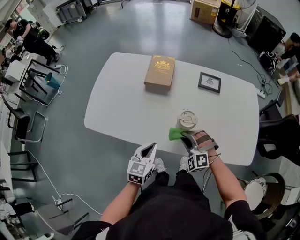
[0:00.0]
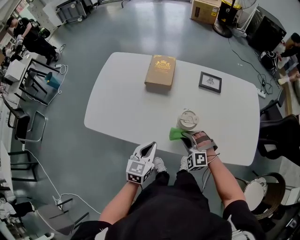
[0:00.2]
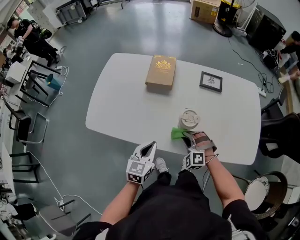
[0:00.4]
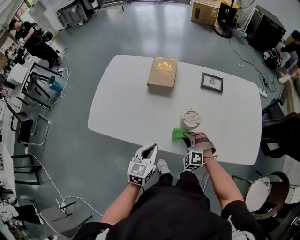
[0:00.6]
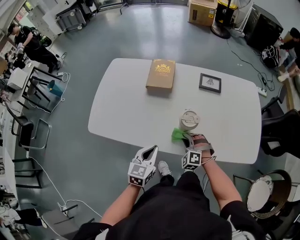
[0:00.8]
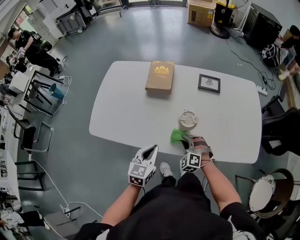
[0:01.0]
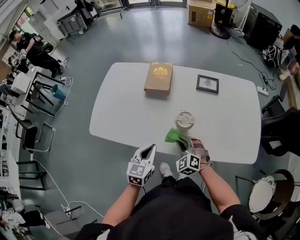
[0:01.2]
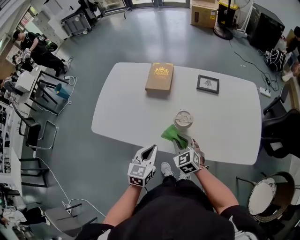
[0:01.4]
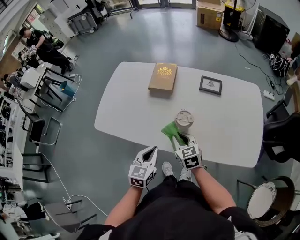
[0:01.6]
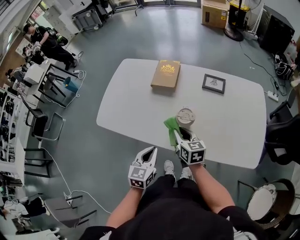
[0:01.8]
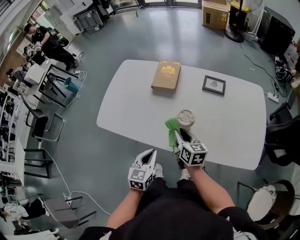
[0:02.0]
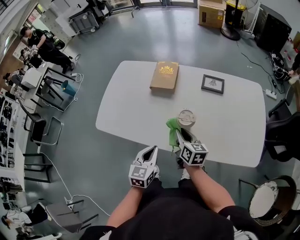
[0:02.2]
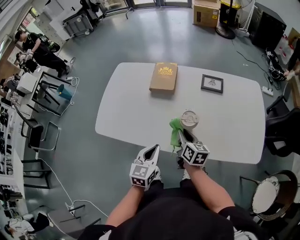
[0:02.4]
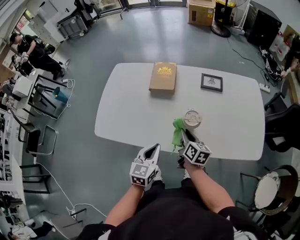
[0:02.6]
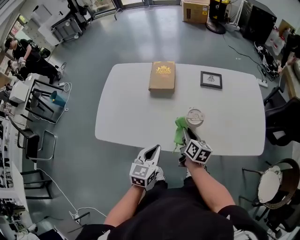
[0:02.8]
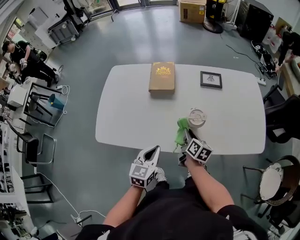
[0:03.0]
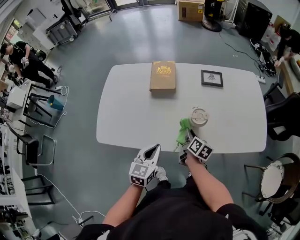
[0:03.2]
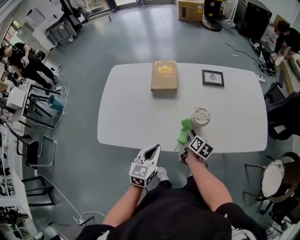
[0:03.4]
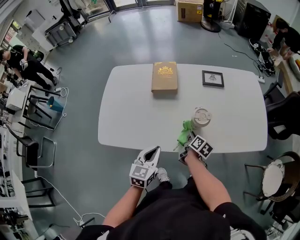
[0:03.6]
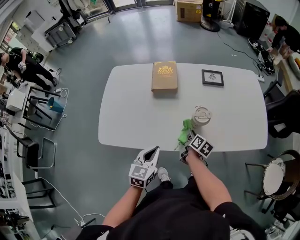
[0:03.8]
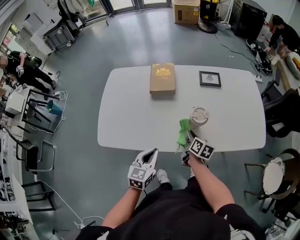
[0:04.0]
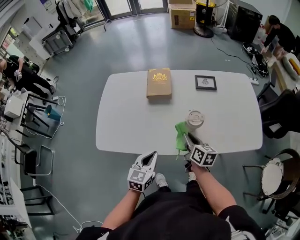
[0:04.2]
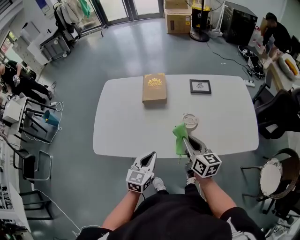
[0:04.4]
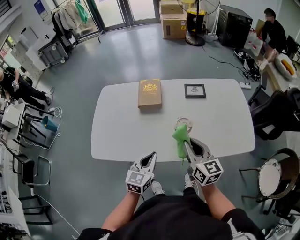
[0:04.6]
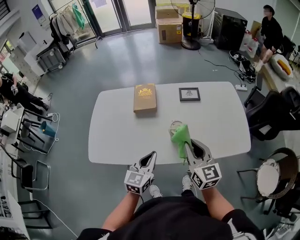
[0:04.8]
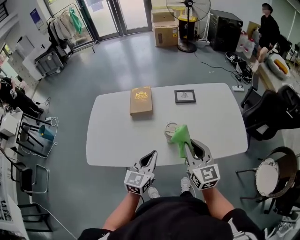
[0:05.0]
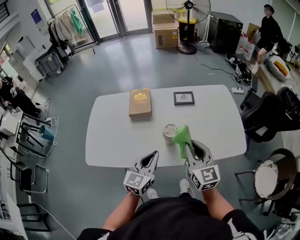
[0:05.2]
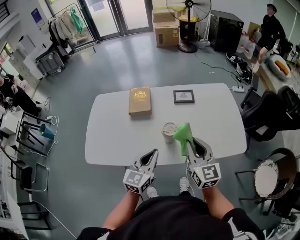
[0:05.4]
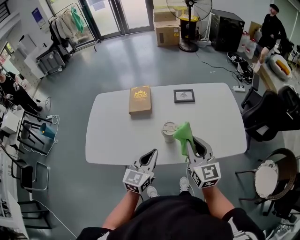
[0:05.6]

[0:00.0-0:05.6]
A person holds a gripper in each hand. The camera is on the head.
0:00.0 to 0:01.4: The right gripper travels downward and back again, roughly 5 cm each way, and rotates around the line of its fingers by some 50 degrees, clockwise from behind.
0:01.4 to 0:02.8: The right gripper twists approximately 60 degrees clockwise, seen from behind.
0:02.8 to 0:04.2: The right gripper reaches about 10 cm downward, then returns.
0:04.2 to 0:05.6: The right gripper moves upward and to the right, approximately 20 cm, and rotates approximately 40 degrees; the left gripper travels to the right and upward by some 15 cm.

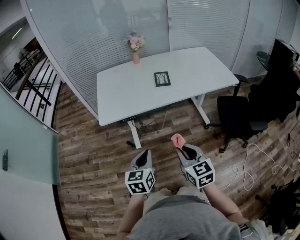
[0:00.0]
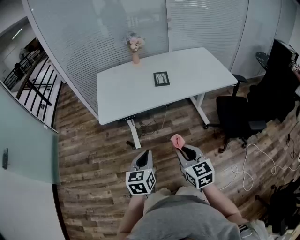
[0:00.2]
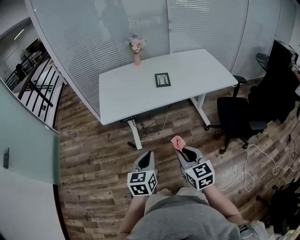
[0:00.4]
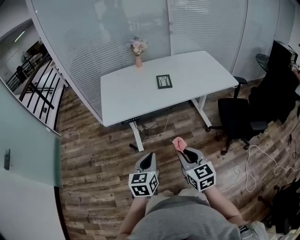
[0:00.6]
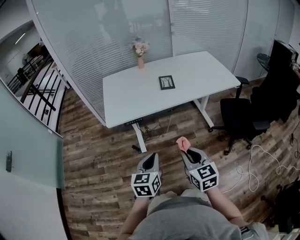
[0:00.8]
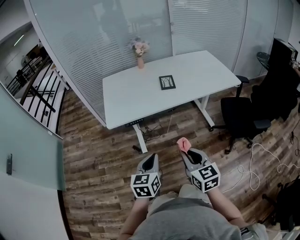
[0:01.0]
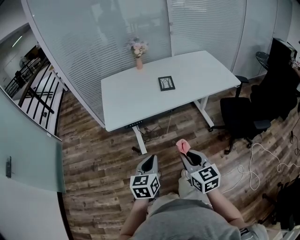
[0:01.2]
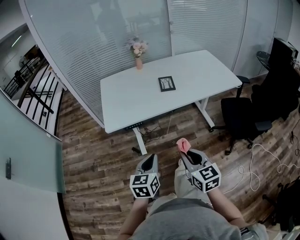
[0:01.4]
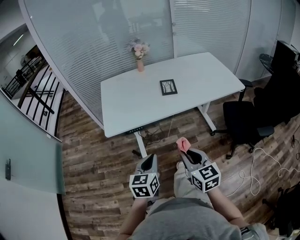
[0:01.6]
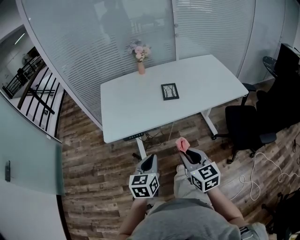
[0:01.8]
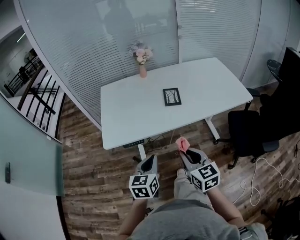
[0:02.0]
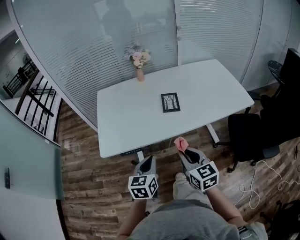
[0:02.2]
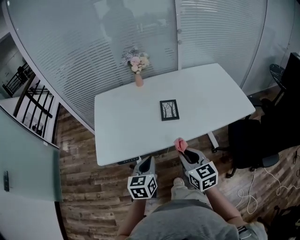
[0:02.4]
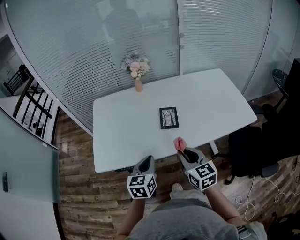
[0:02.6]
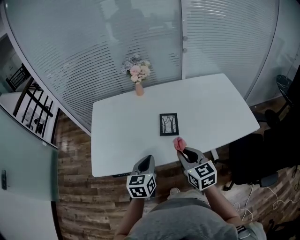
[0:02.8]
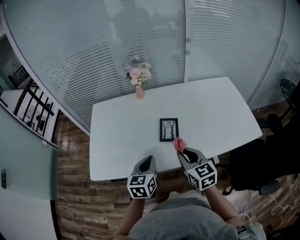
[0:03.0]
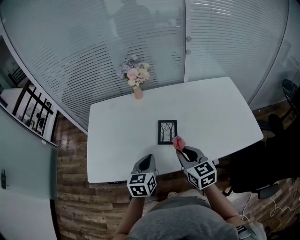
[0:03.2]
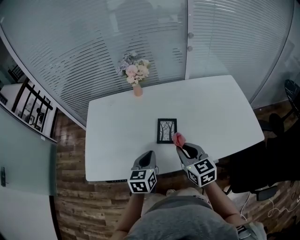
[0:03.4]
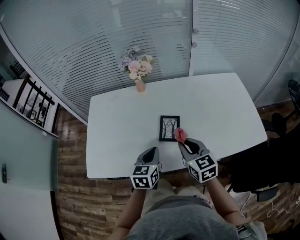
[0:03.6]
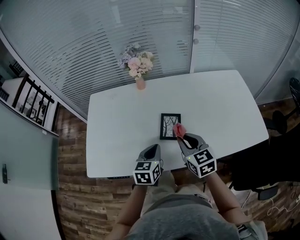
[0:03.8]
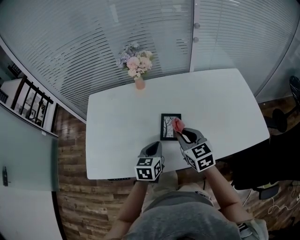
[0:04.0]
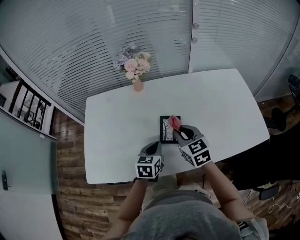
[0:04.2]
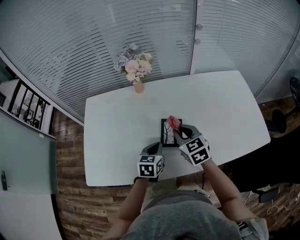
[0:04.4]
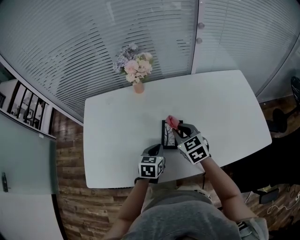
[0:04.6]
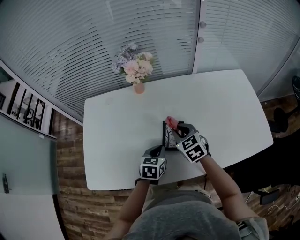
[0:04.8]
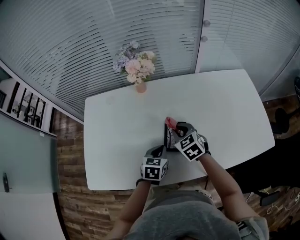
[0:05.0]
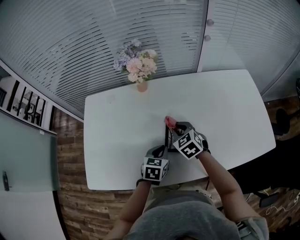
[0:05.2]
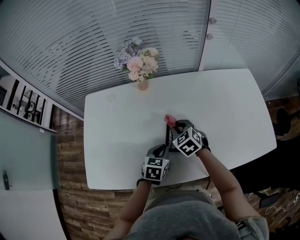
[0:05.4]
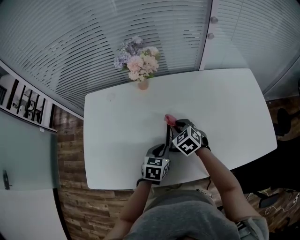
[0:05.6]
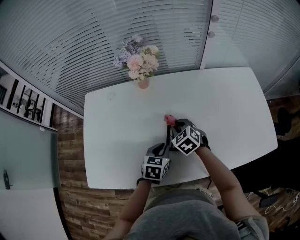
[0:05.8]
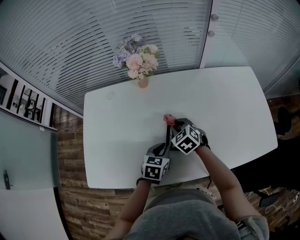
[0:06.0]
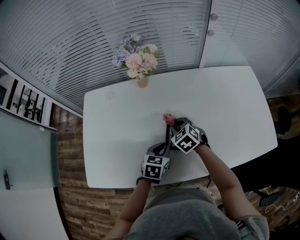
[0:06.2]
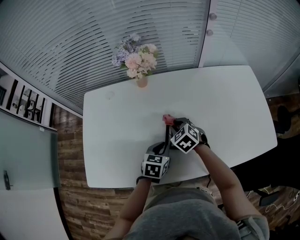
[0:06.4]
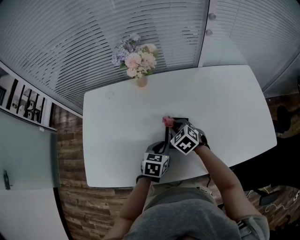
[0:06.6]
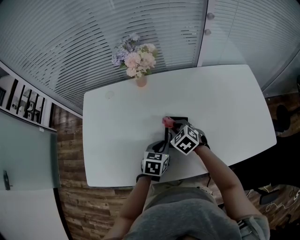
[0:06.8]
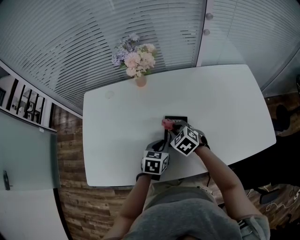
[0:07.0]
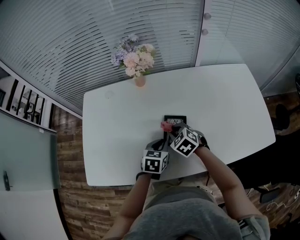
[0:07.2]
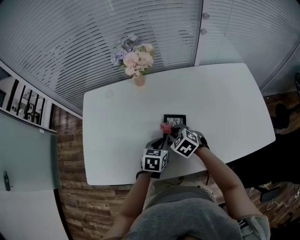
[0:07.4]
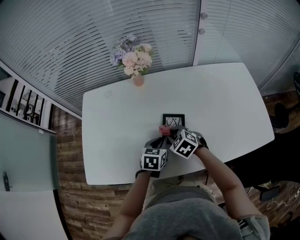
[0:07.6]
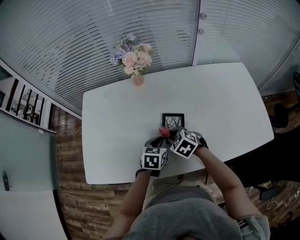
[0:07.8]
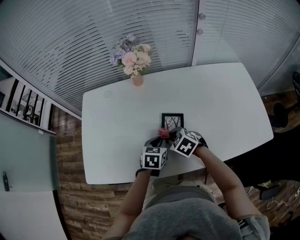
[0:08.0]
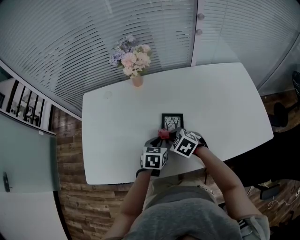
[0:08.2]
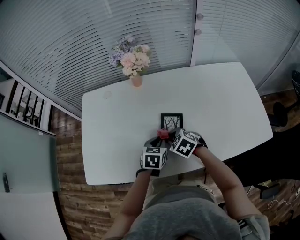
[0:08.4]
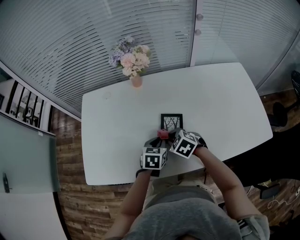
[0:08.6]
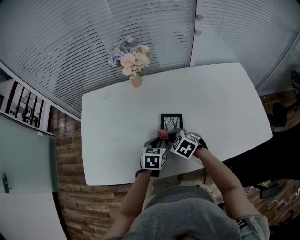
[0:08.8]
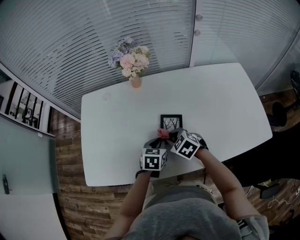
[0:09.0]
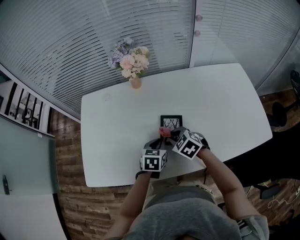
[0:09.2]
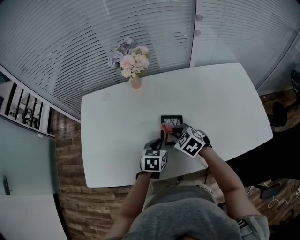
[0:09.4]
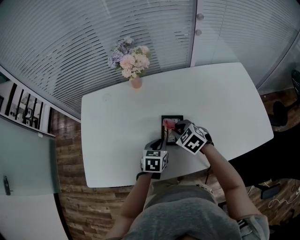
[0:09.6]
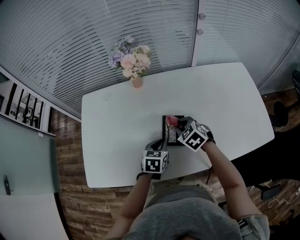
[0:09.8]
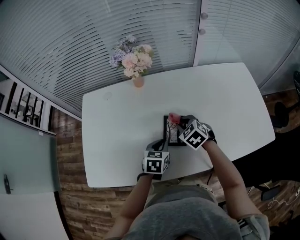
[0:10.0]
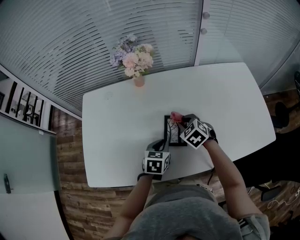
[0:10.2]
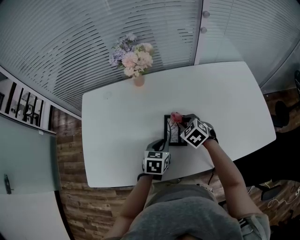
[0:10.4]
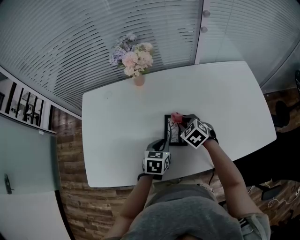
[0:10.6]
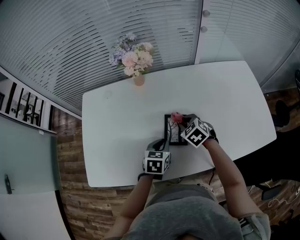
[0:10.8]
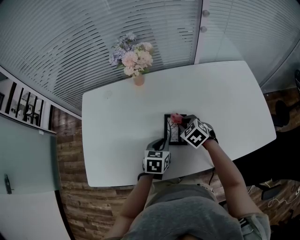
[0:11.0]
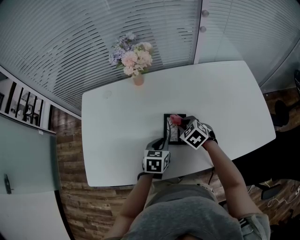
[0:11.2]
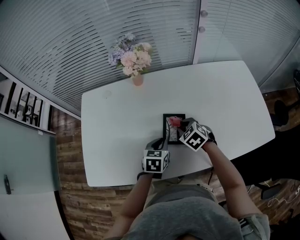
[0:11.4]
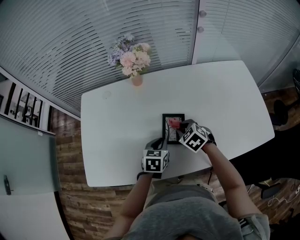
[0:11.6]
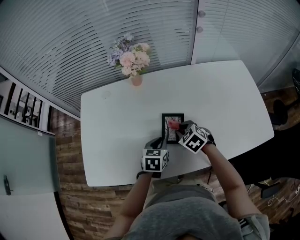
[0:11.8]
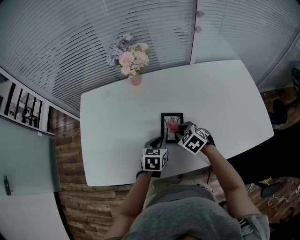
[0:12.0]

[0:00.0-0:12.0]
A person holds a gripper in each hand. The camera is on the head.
0:00.0 to 0:01.6: There are only small adjustments of the grippers.
0:01.6 to 0:03.0: Both grippers move forward, about 35 cm.
0:03.0 to 0:04.4: The left gripper goes about 15 cm forward and downward; the right gripper heads forward, covering about 15 cm.
0:04.4 to 0:06.0: The right gripper heads downward and forward, covering roughly 15 cm, and turns by about 20 degrees.
0:06.0 to 0:07.6: The right gripper moves backward, some 10 cm.
0:07.6 to 0:09.0: There are only small adjustments of the grippers.
0:09.0 to 0:10.4: The right gripper shifts roughly 10 cm forward and to the right.
0:10.4 to 0:12.0: The right gripper travels backward by approximately 5 cm.

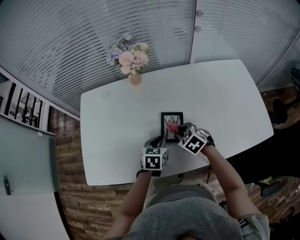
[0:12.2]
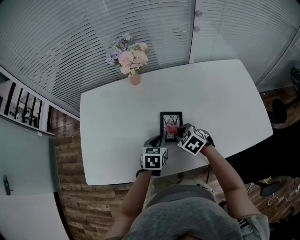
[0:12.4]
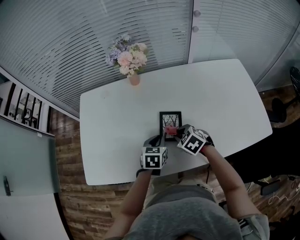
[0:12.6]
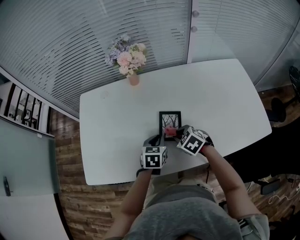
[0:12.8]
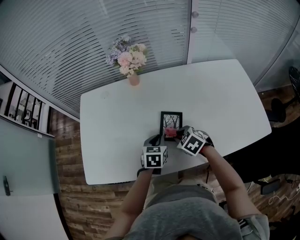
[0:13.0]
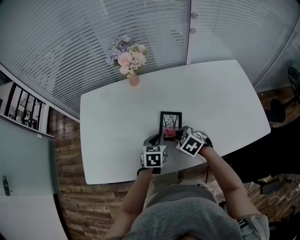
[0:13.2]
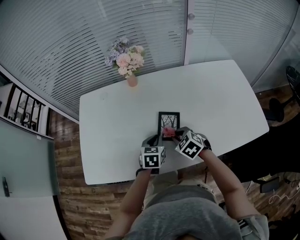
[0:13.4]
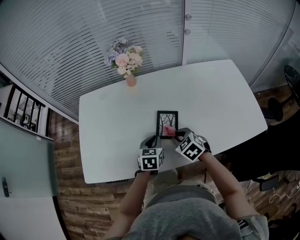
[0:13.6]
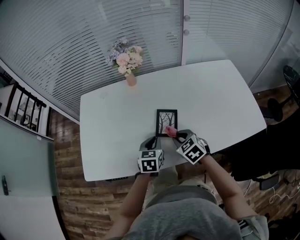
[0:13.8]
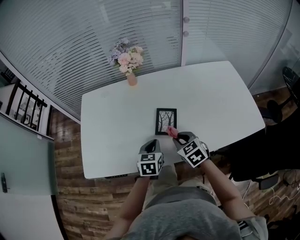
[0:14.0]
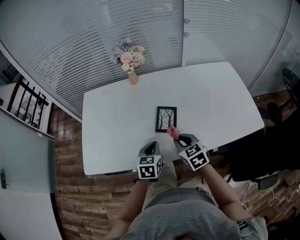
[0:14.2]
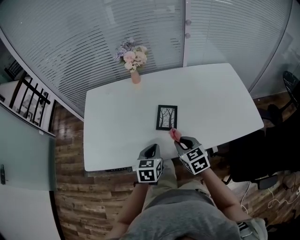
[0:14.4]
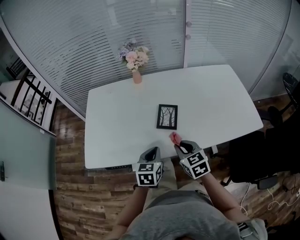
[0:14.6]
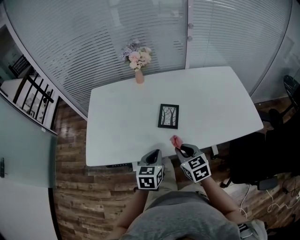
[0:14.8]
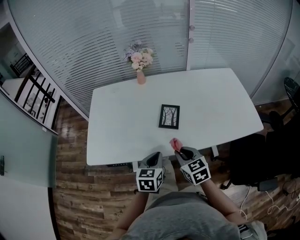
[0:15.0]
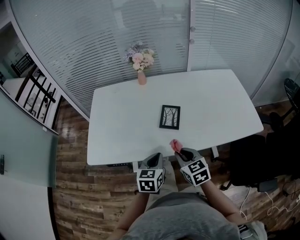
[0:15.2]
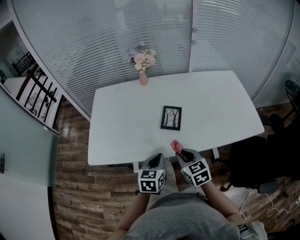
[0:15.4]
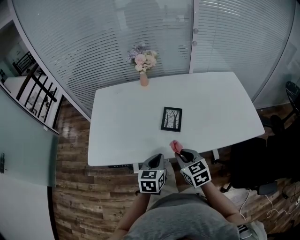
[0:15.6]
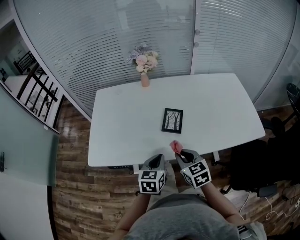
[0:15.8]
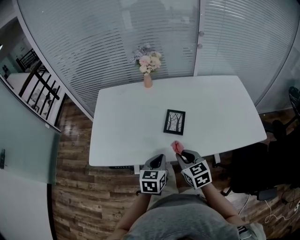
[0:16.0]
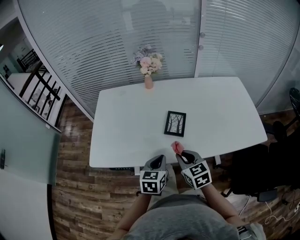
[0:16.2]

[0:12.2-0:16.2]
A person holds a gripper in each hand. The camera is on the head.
0:12.2 to 0:13.6: The right gripper shifts by some 5 cm.
0:13.6 to 0:14.8: The right gripper travels backward and upward by roughly 15 cm, and rotates approximately 20 degrees. The left gripper moves backward, roughly 15 cm.
0:14.8 to 0:16.2: The grippers make only small movements.

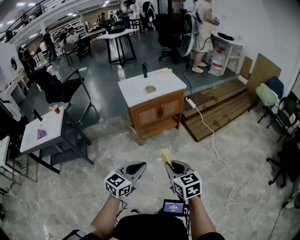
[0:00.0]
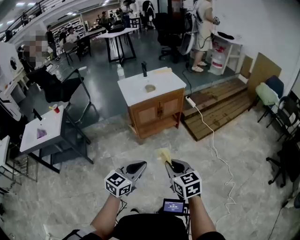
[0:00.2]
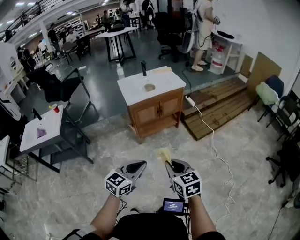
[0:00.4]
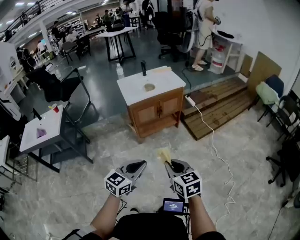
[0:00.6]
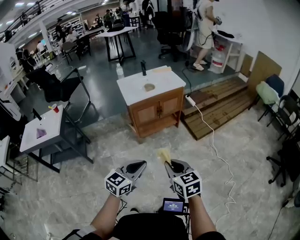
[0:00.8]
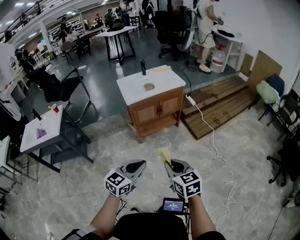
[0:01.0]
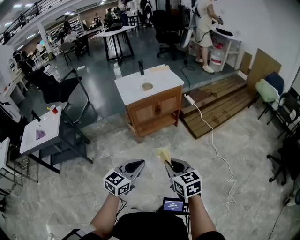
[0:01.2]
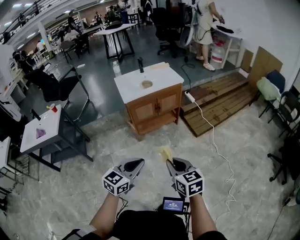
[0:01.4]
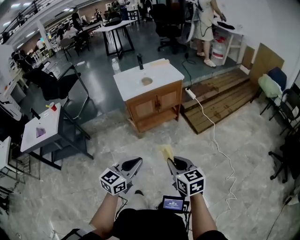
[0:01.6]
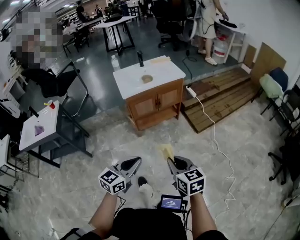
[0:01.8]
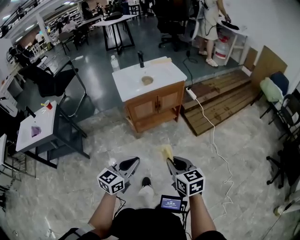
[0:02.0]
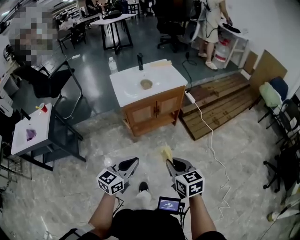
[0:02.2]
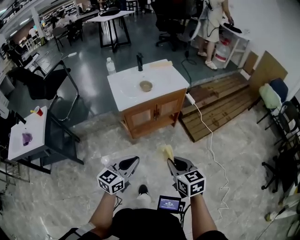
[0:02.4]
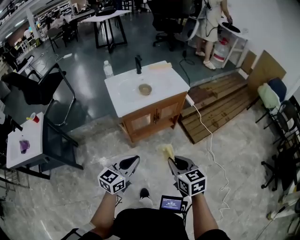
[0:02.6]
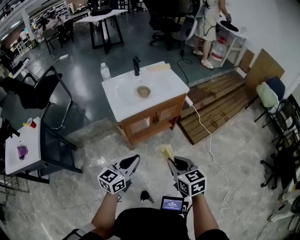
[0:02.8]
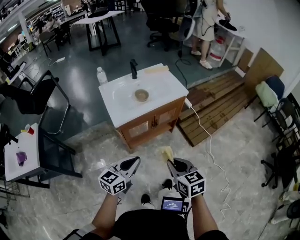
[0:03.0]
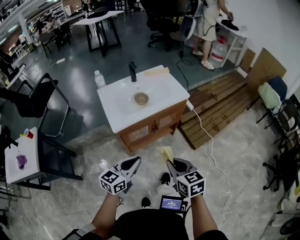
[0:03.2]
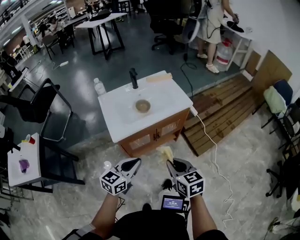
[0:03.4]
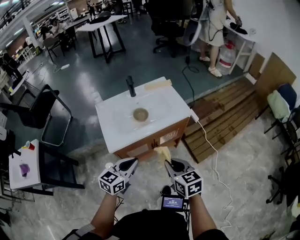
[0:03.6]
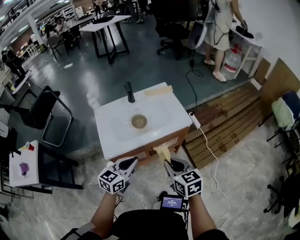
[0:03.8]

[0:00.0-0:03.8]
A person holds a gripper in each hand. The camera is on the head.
0:00.0 to 0:01.2: The grippers stay close to where they were, moving slightly.
0:01.2 to 0:02.6: Both grippers move forward, about 25 cm.
0:02.6 to 0:03.8: The grippers both shift forward by approximately 30 cm.
